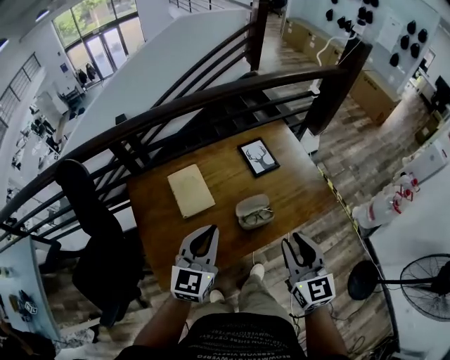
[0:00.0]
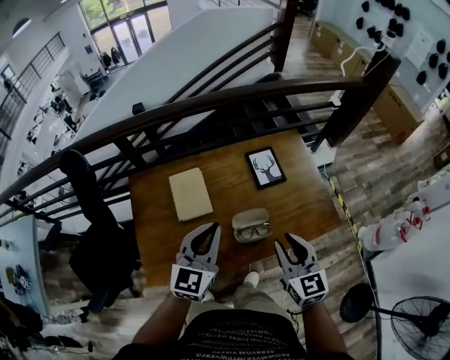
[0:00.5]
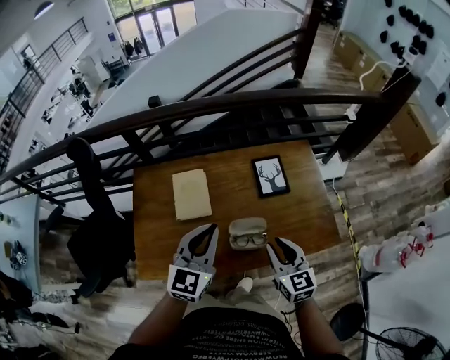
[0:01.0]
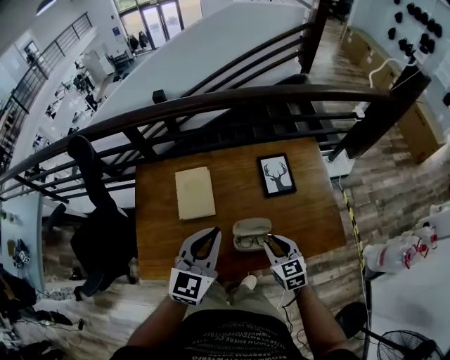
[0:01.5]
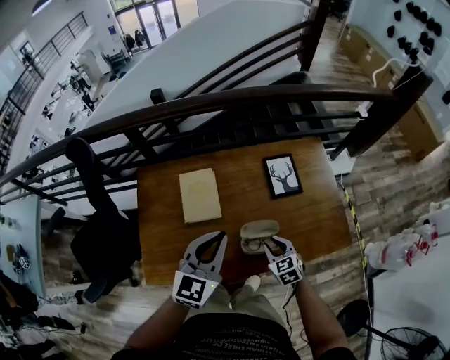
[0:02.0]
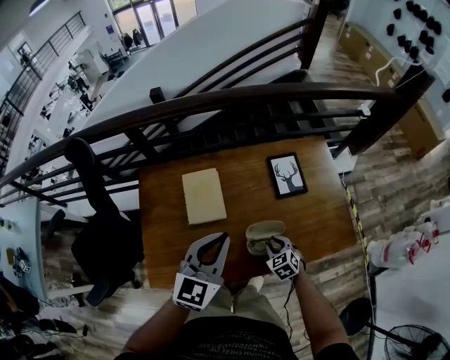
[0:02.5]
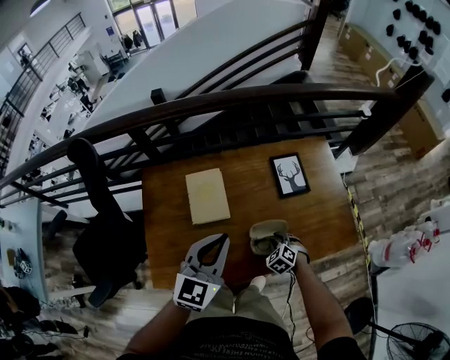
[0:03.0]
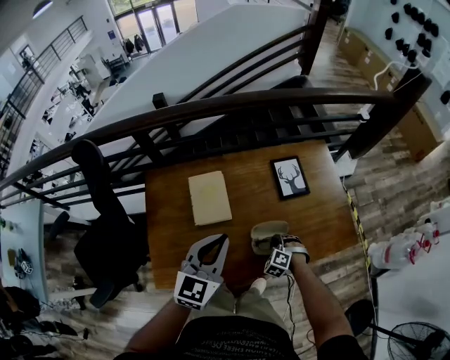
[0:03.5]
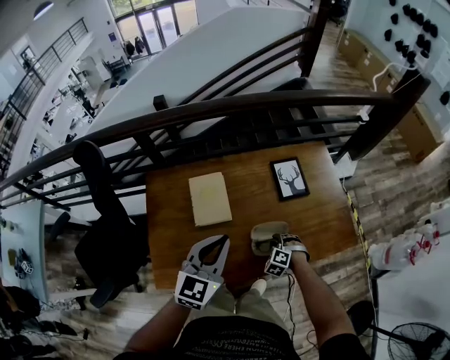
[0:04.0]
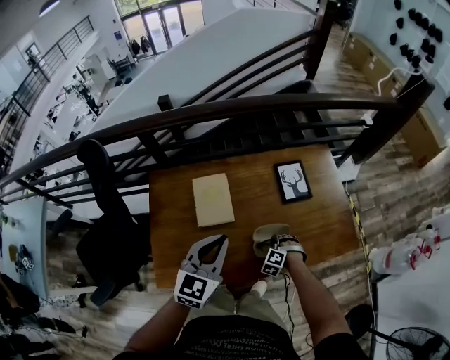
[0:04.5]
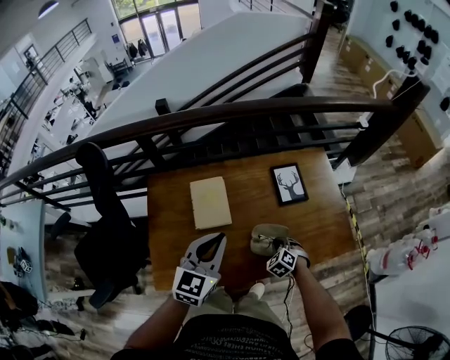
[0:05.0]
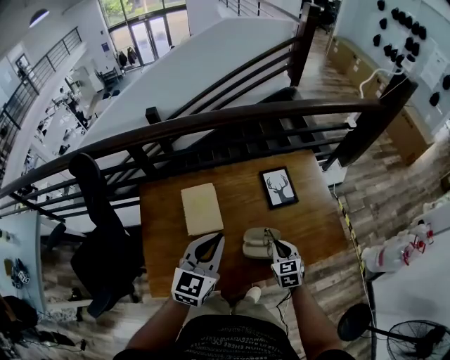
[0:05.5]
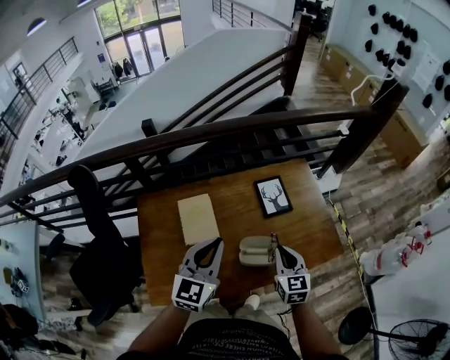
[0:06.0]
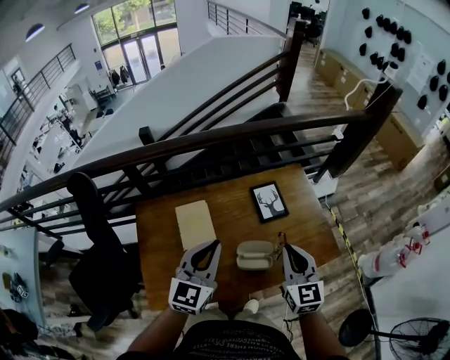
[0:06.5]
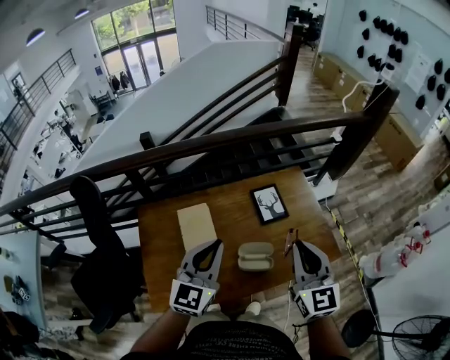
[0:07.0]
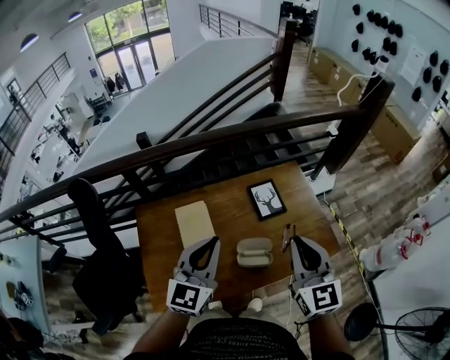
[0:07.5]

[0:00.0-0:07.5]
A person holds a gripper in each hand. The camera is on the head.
0:00.0 to 0:02.0: The right gripper goes roughly 30 cm downward and forward, and tips its fingers downward by some 30 degrees. The left gripper travels forward and to the right by some 10 cm.
0:02.0 to 0:04.0: The right gripper travels downward by about 10 cm, twists about 40 degrees counterclockwise, seen from behind, and closes and opens again.
0:04.0 to 0:05.5: The right gripper goes approximately 15 cm upward, and rolls clockwise, seen from behind, by approximately 50 degrees.
0:05.5 to 0:07.5: The left gripper is displaced upward by some 10 cm, while the right gripper goes about 30 cm upward, and points its fingers about 30 degrees further upward.

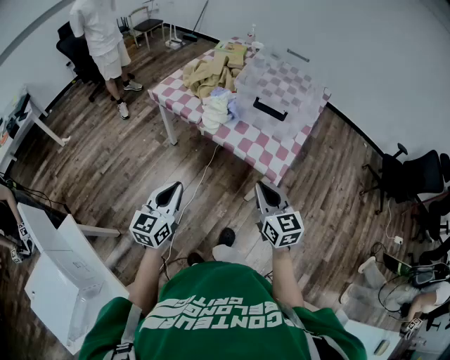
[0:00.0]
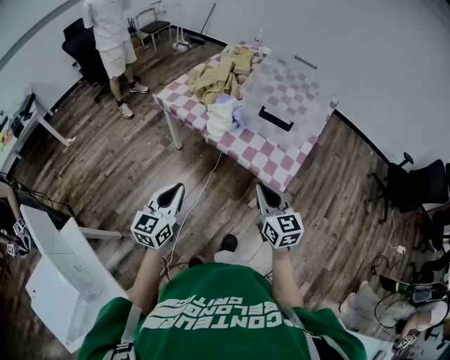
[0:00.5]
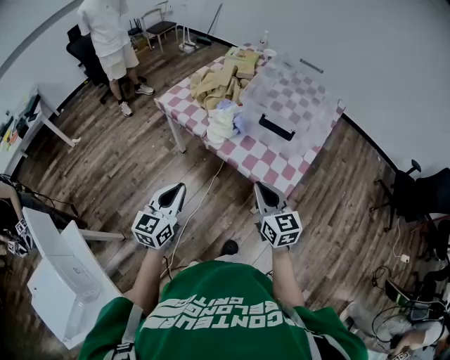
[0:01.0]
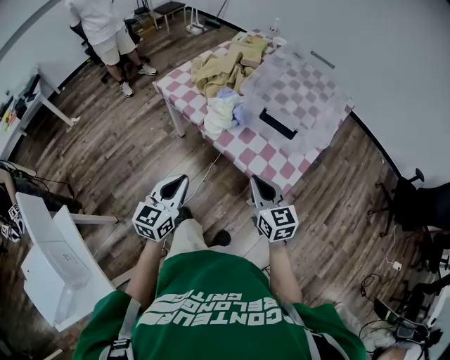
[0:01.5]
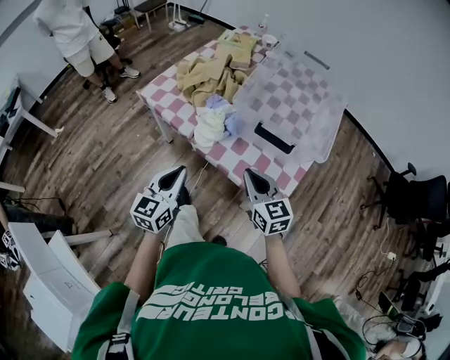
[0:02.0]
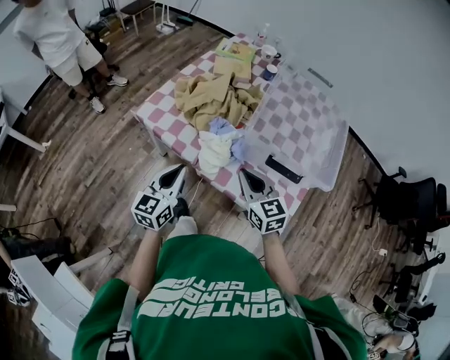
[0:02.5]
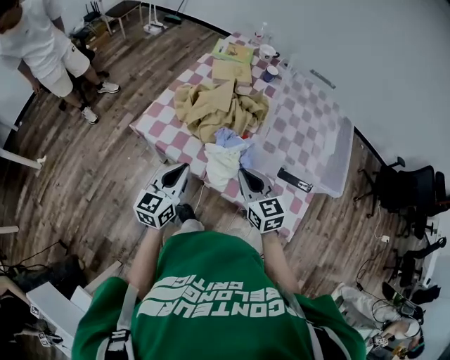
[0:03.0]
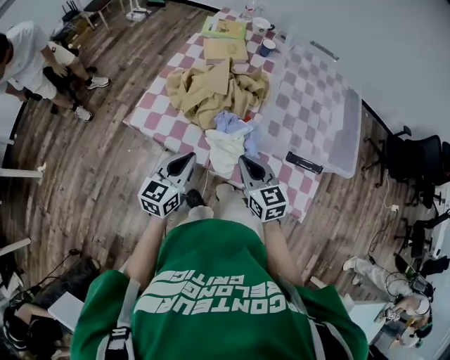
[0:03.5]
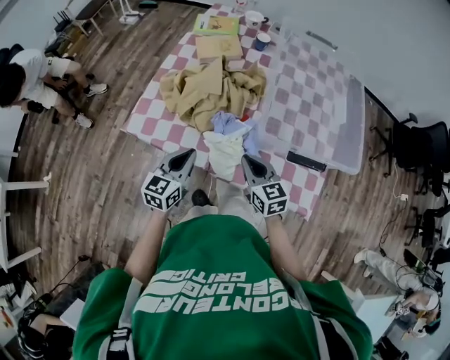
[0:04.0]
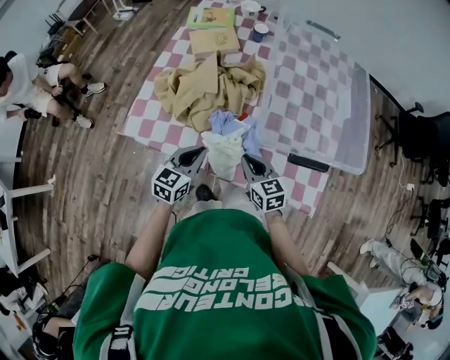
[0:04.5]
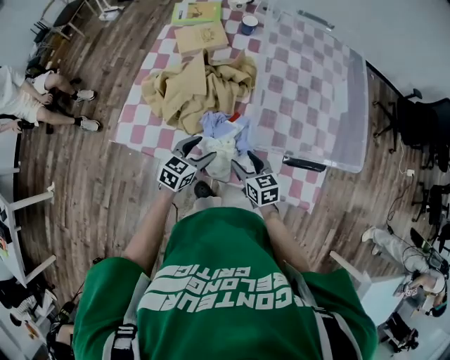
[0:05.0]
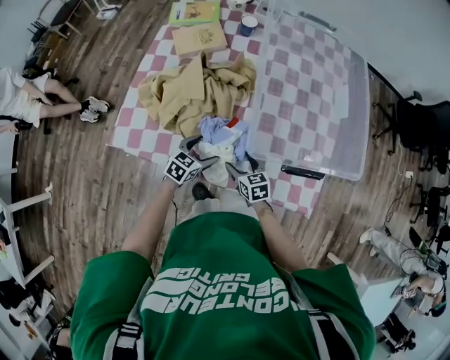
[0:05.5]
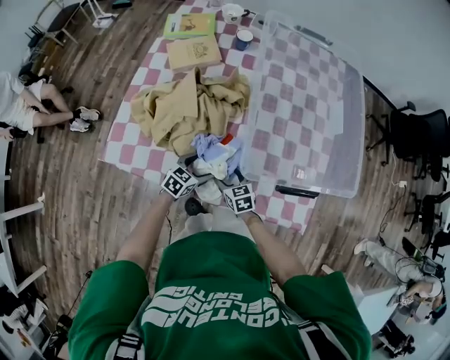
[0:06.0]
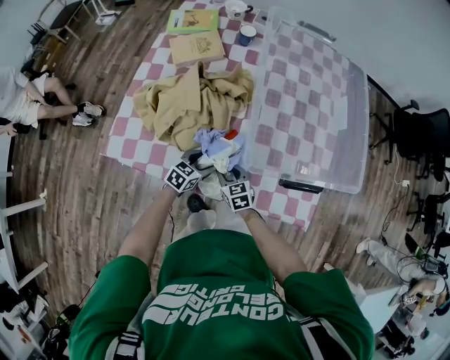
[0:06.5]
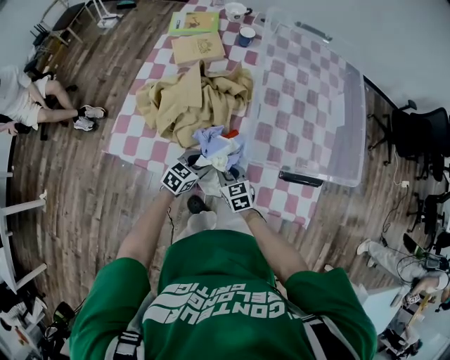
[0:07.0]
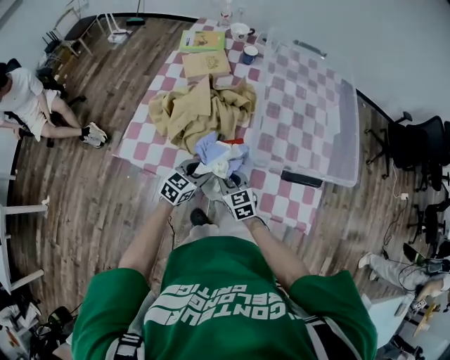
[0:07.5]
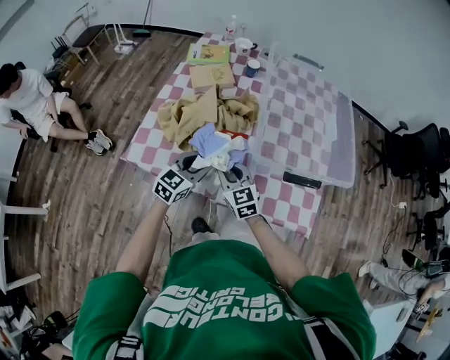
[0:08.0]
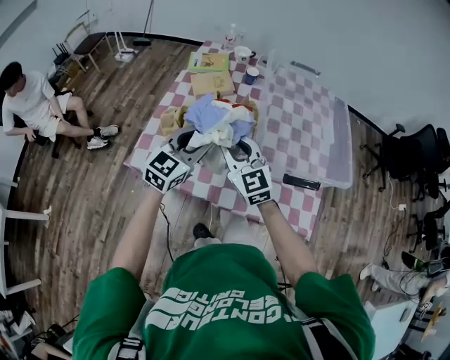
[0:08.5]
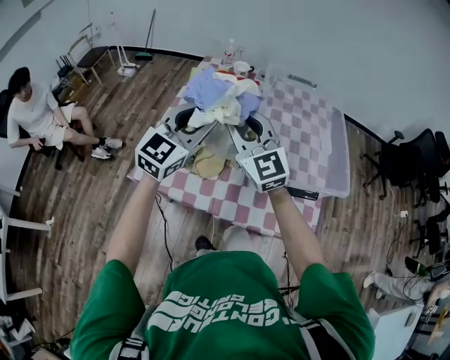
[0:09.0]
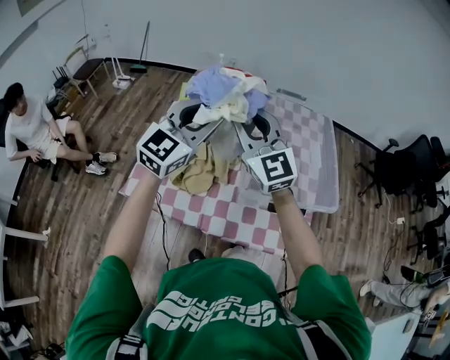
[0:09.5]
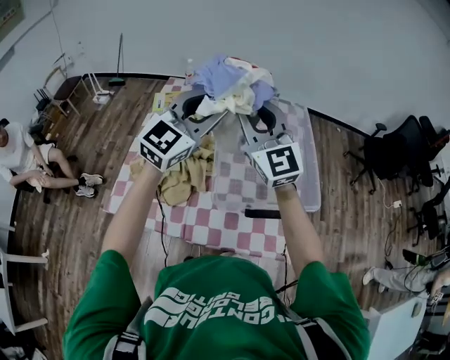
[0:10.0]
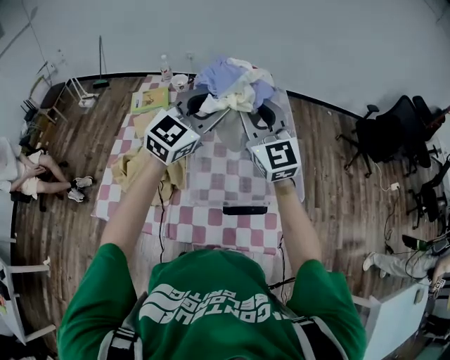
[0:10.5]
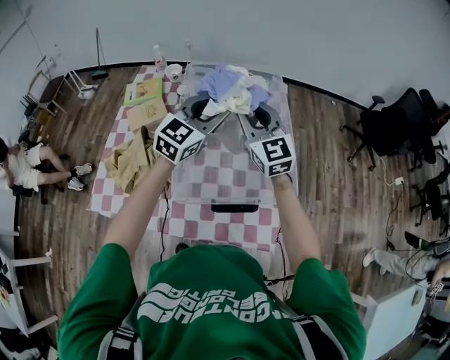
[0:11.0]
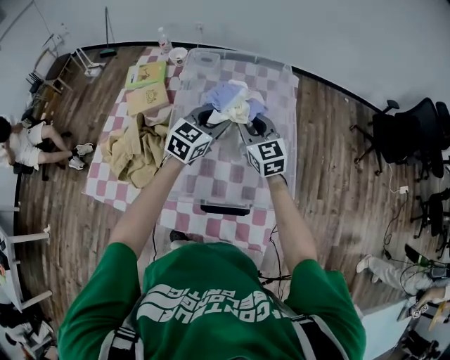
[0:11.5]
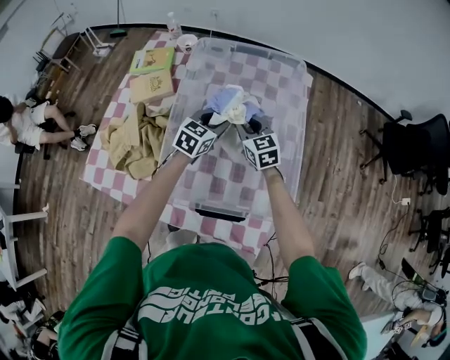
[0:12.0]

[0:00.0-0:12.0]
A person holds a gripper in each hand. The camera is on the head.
0:00.0 to 0:02.0: The grippers both shift forward by about 25 cm.
0:02.0 to 0:04.0: The right gripper shifts roughly 25 cm forward, to the left and downward. Meanwhile the left gripper shifts about 25 cm forward, and changes its angle by approximately 20 degrees.
0:04.0 to 0:06.0: The right gripper goes roughly 20 cm downward, and opens up, while the left gripper is displaced downward, to the right and forward by some 25 cm, swivels about 40 degrees, and opens up.
0:06.0 to 0:08.0: Both grippers move upward, approximately 20 cm. The right gripper rotates about 30 degrees, and closes up, while the left gripper changes its angle by some 30 degrees, and closes up.
0:08.0 to 0:10.0: Both grippers travel together upward and forward, some 40 cm. The left gripper changes its angle by approximately 30 degrees. The right gripper tilts its fingers roughly 30 degrees upward.
0:10.0 to 0:12.0: Both grippers move downward, forward and to the right, roughly 40 cm. The right gripper angles its fingers downward, by some 30 degrees, while the left gripper tilts its fingers approximately 30 degrees downward.

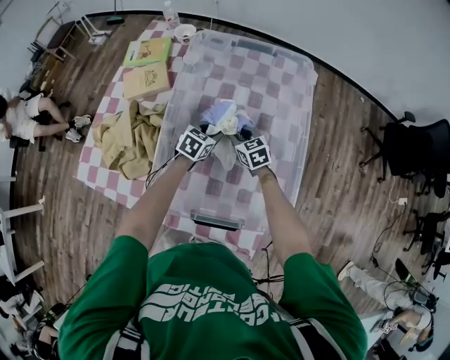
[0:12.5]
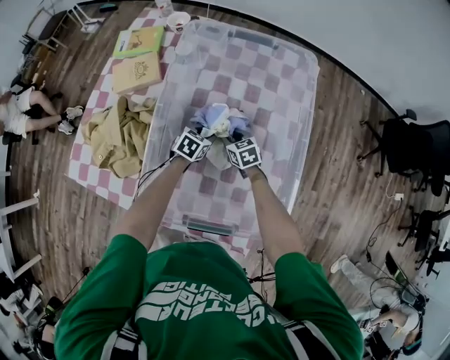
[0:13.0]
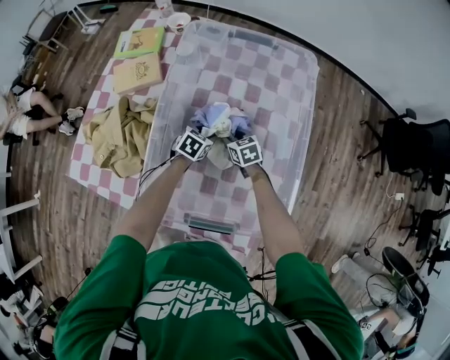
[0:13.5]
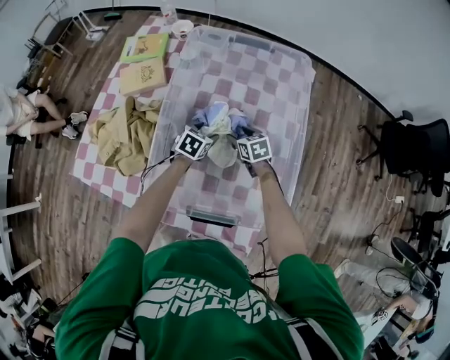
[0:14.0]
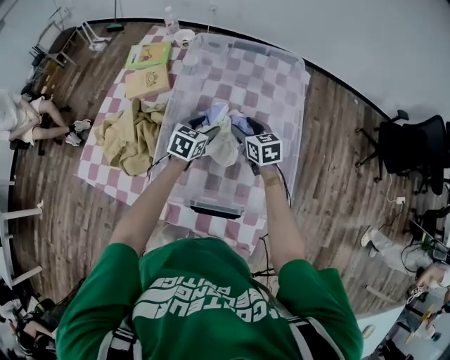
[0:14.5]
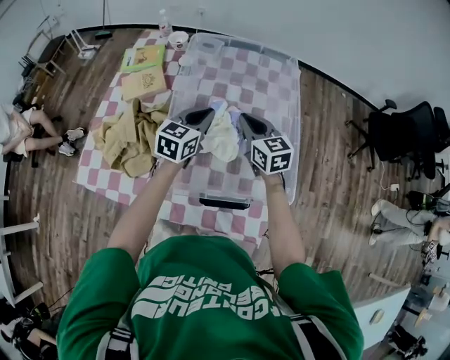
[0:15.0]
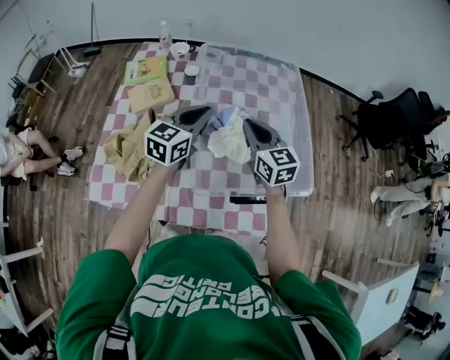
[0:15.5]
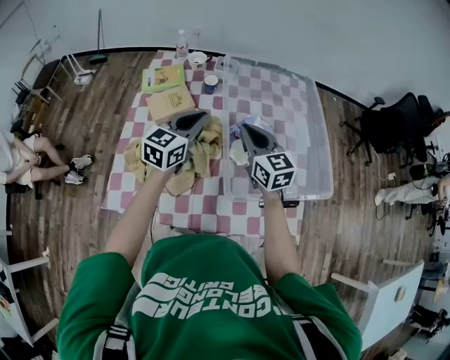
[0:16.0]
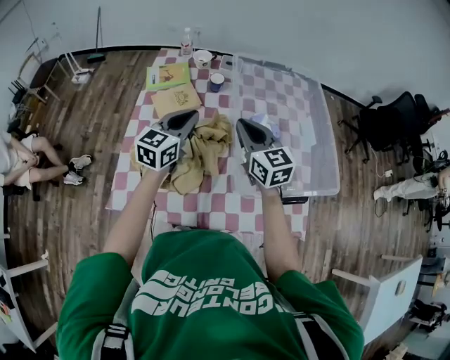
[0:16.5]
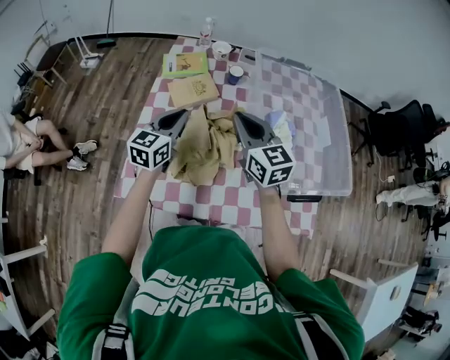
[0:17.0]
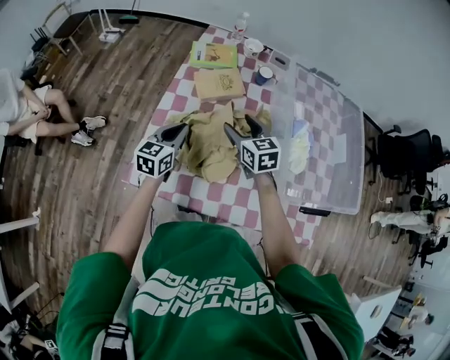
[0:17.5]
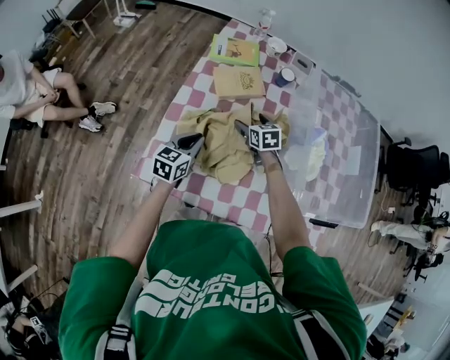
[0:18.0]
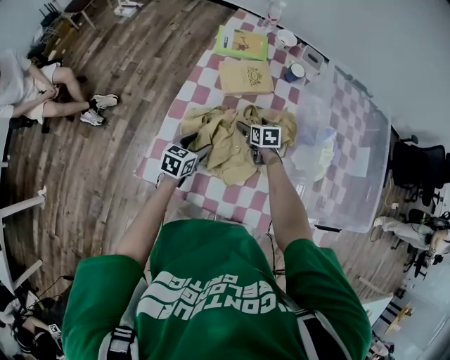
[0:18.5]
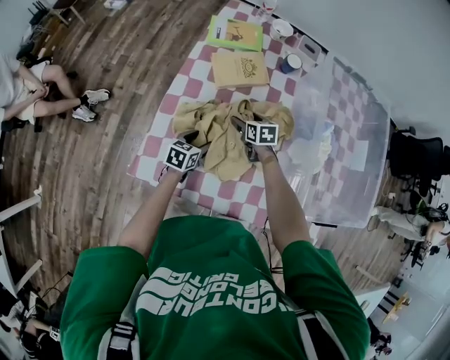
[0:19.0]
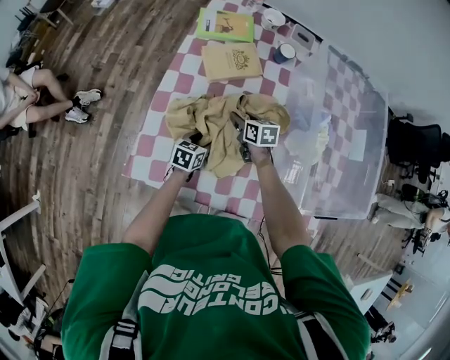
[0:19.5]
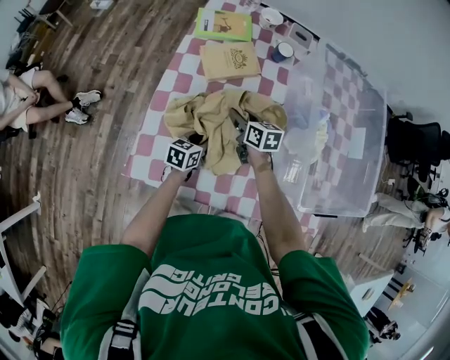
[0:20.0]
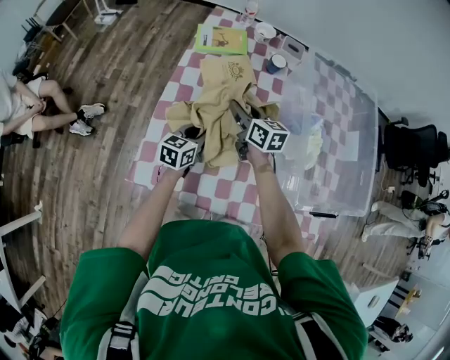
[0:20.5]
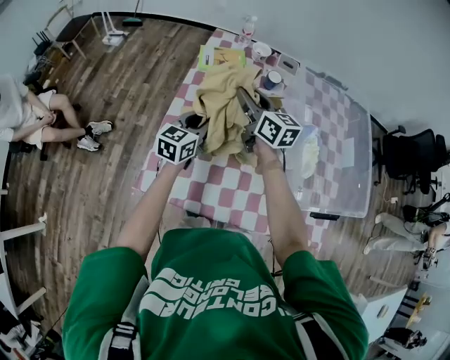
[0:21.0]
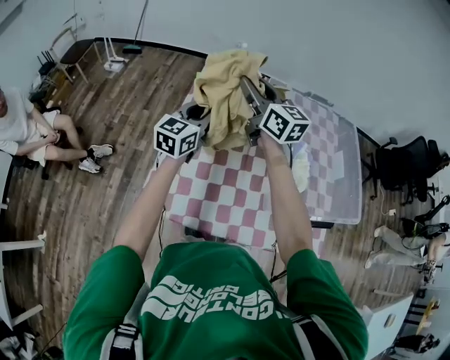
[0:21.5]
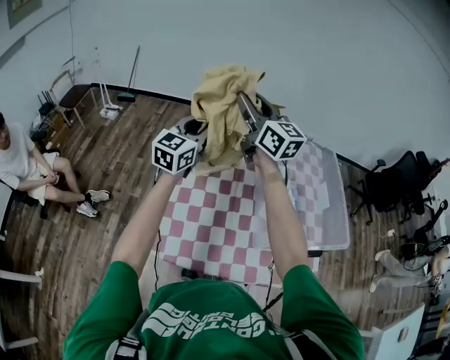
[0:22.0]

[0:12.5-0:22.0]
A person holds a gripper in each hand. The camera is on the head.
0:12.5 to 0:14.5: Both grippers move upward, about 10 cm. The right gripper opens.
0:14.5 to 0:16.5: The right gripper shifts about 35 cm to the left, upward and backward, turns by some 20 degrees, and closes its fingers, while the left gripper travels to the left and upward by roughly 35 cm, turns by about 30 degrees, and closes up.
0:16.5 to 0:18.0: Both grippers travel together downward and to the left, approximately 30 cm. The right gripper tips its fingers downward by about 30 degrees, and opens. The left gripper swivels about 20 degrees.
0:18.0 to 0:20.0: The left gripper shifts approximately 15 cm downward and to the right, and opens, then closes once more; the right gripper travels downward and back again, about 10 cm each way, rotates approximately 20 degrees, and closes its fingers.
0:20.0 to 0:22.0: Both grippers travel together upward, some 50 cm. The left gripper tilts its fingers approximately 30 degrees upward, while the right gripper points its fingers some 50 degrees further upward.
